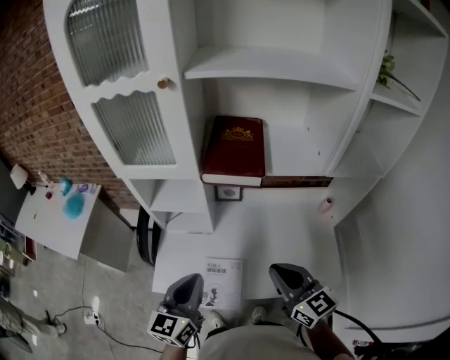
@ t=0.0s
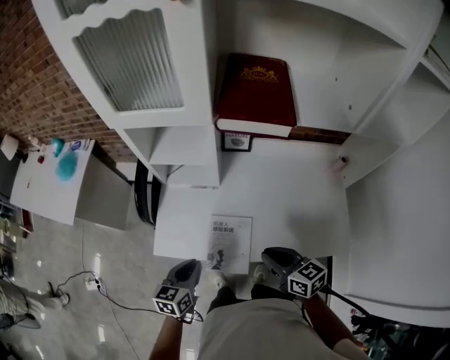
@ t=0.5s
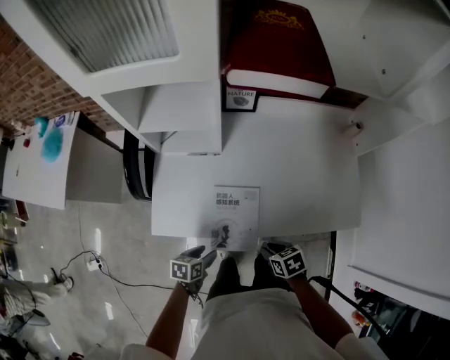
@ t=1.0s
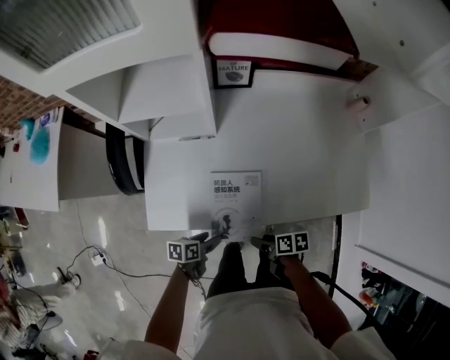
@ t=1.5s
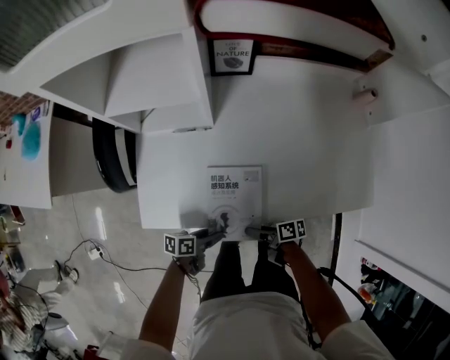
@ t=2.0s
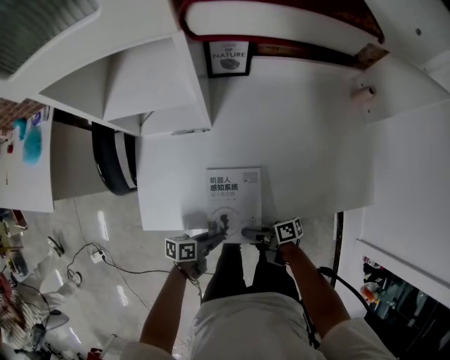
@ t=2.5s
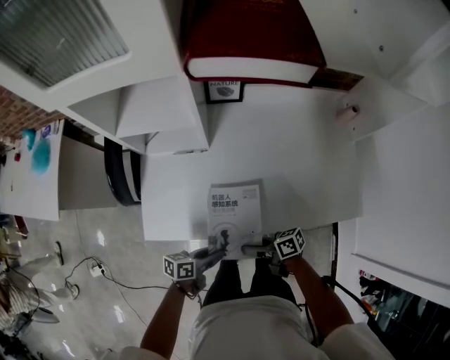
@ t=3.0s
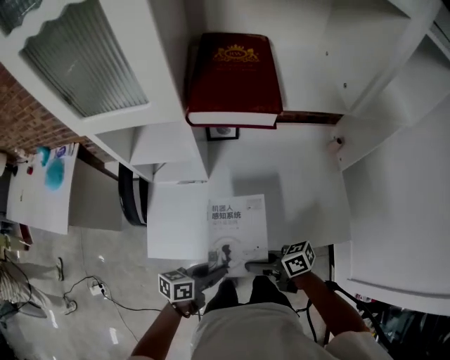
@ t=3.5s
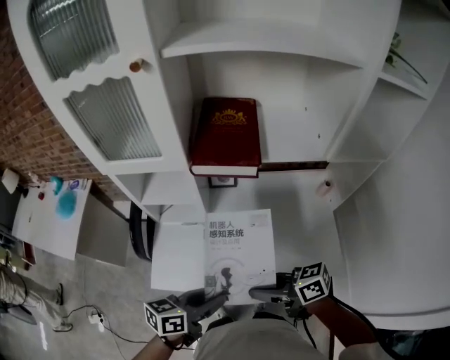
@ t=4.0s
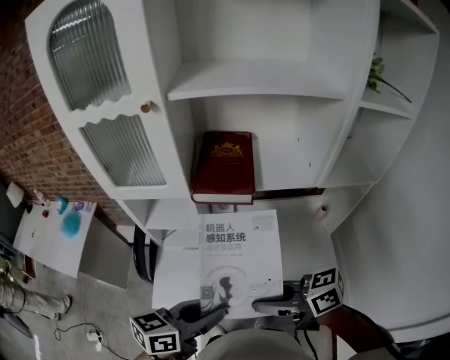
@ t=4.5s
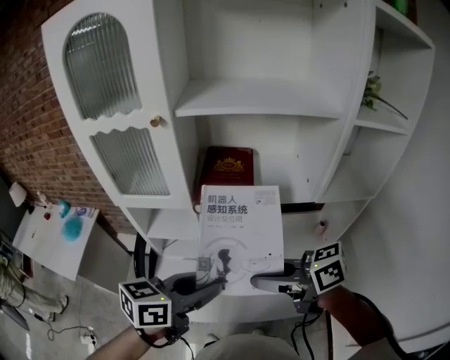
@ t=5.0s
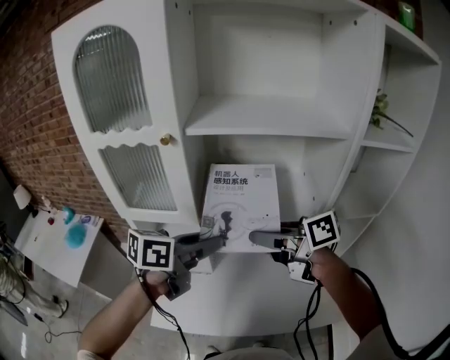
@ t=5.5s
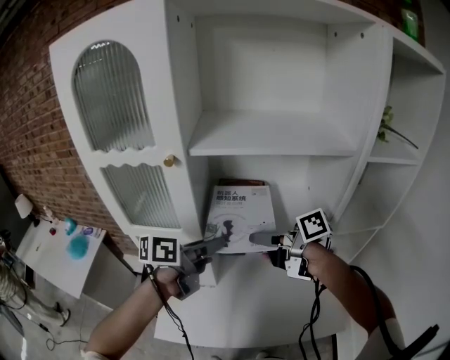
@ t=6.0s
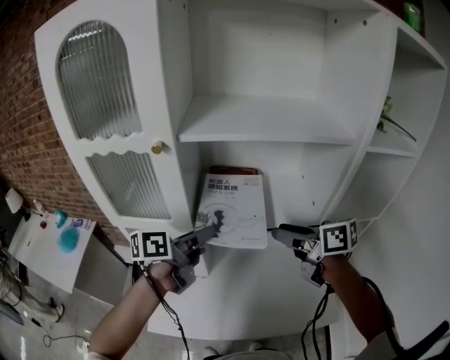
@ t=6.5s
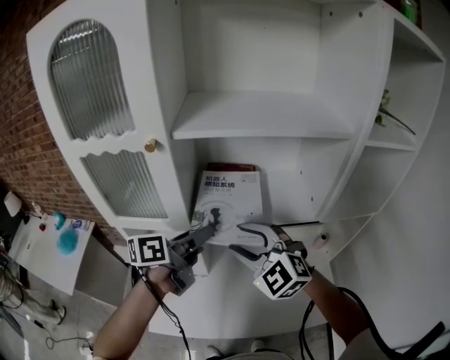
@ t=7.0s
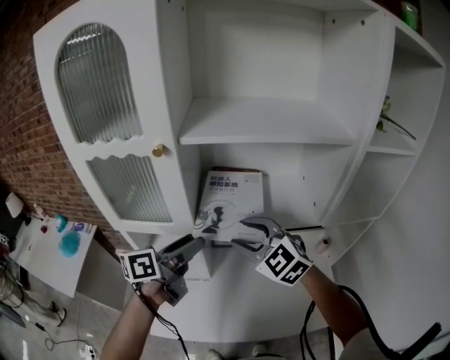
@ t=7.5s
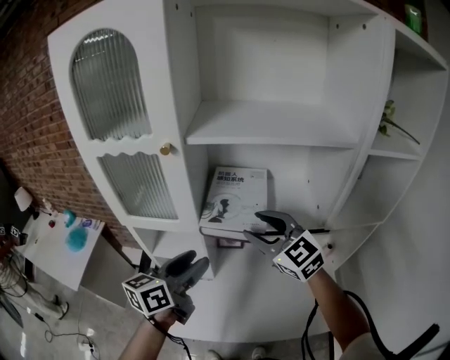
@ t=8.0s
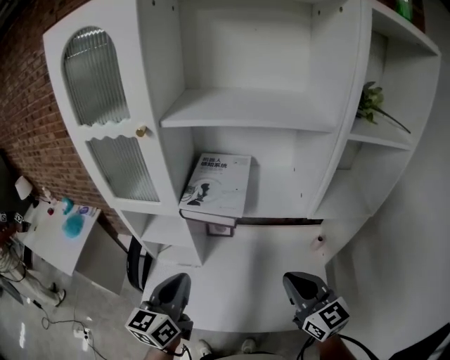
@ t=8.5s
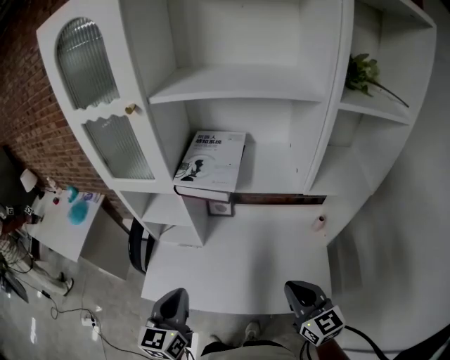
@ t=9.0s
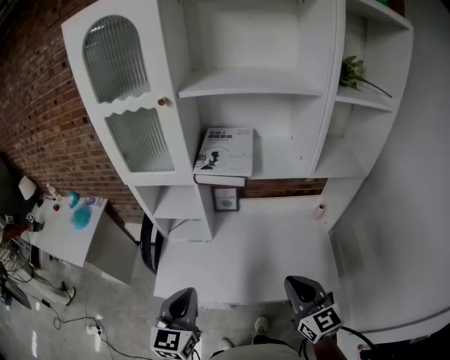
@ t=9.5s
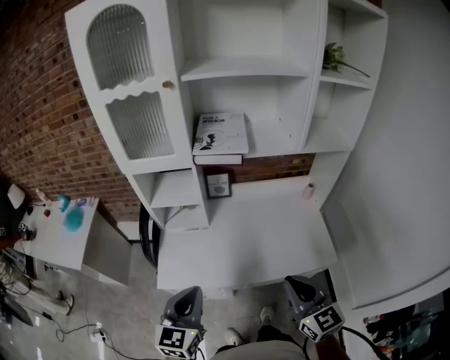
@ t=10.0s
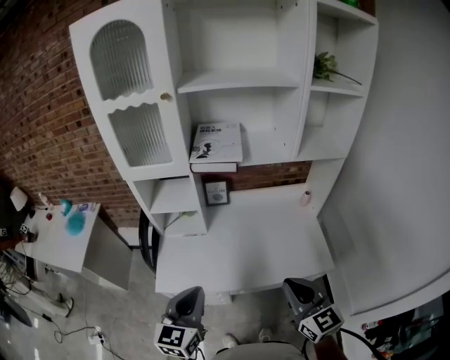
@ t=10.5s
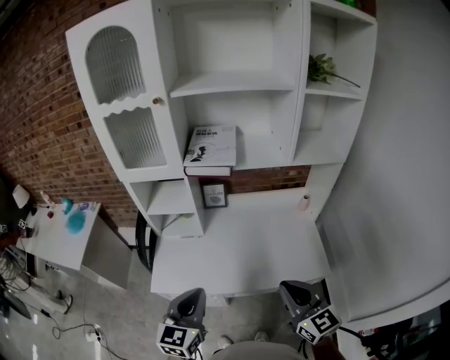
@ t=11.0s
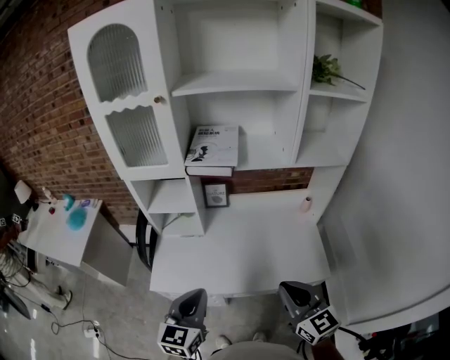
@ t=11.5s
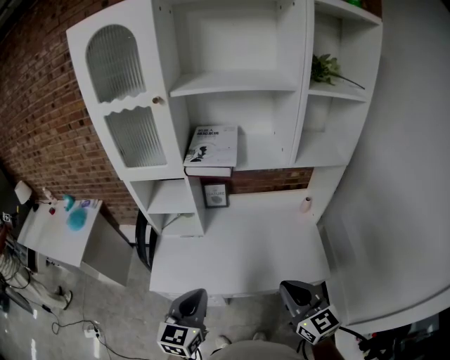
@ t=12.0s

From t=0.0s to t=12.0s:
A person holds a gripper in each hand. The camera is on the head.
From t=0.0s to t=2.0s: The two grippers go approximately 50 cm downward. The right gripper rolls clockwise, seen from behind, by roughly 80 degrees, and opens. Meanwhile the left gripper turns by about 80 degrees, and opens up.
From t=2.0s to t=4.0s: Both grippers travel together upward, about 40 cm. The right gripper rotates around the line of its fingers by some 50 degrees, counterclockwise from behind, and closes its fingers, while the left gripper swivels some 30 degrees.
From t=4.0s to t=6.0s: The left gripper moves approximately 35 cm. Meanwhile the right gripper changes place by approximately 35 cm.
From t=6.0s to t=8.0s: The right gripper goes to the right and returns, approximately 5 cm each way, and rotates around the line of its fingers by some 80 degrees, counterclockwise from behind. Meanwhile the left gripper moves backward, roughly 5 cm, and changes its angle by some 30 degrees.
From t=8.0s to t=10.0s: Both grippers move backward, about 35 cm. The left gripper changes its angle by about 30 degrees, and closes, while the right gripper swivels roughly 30 degrees, and closes.
From t=10.0s to t=12.0s: Both grippers move to the right, some 5 cm.

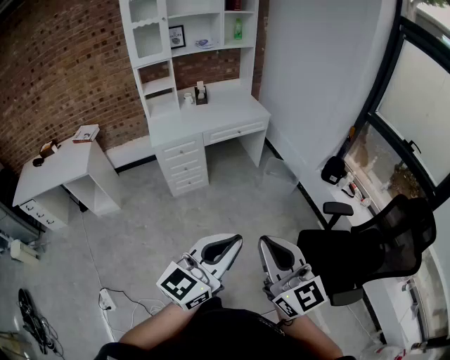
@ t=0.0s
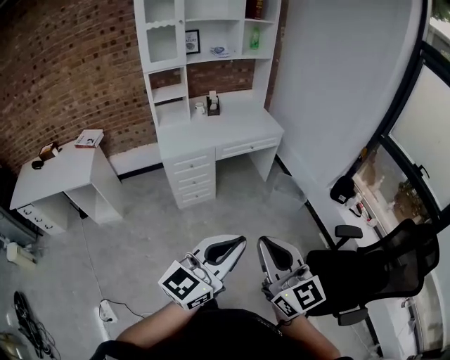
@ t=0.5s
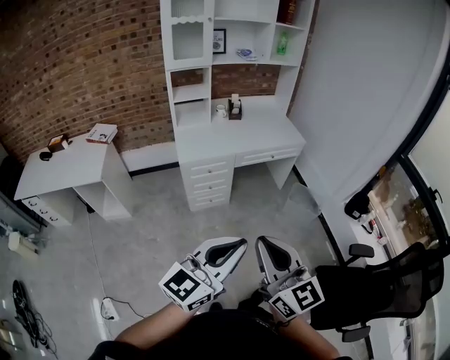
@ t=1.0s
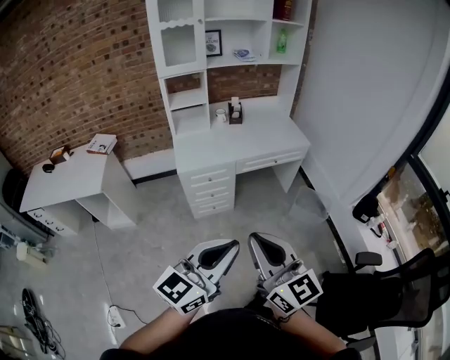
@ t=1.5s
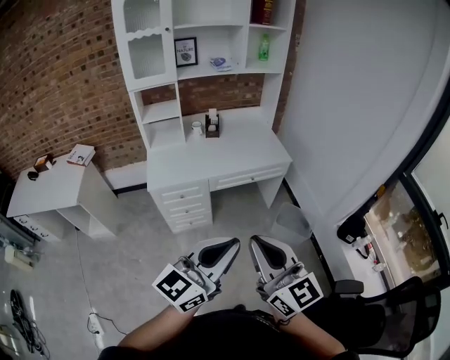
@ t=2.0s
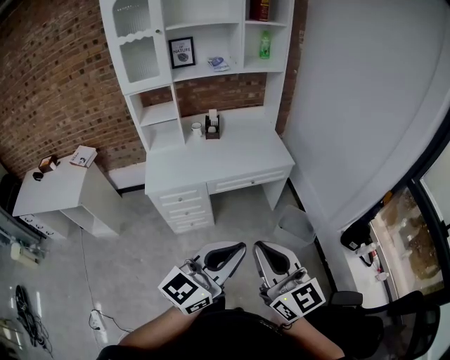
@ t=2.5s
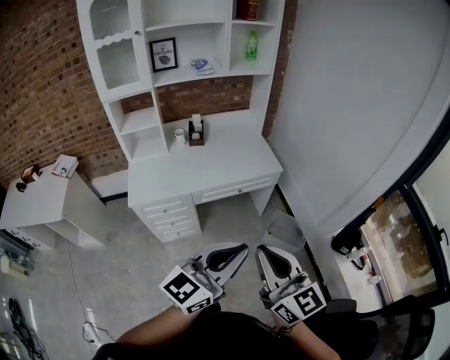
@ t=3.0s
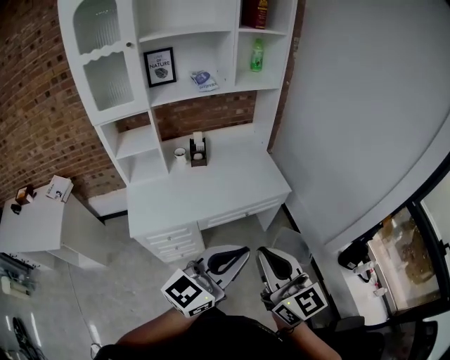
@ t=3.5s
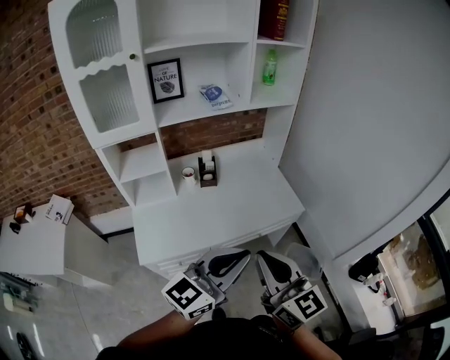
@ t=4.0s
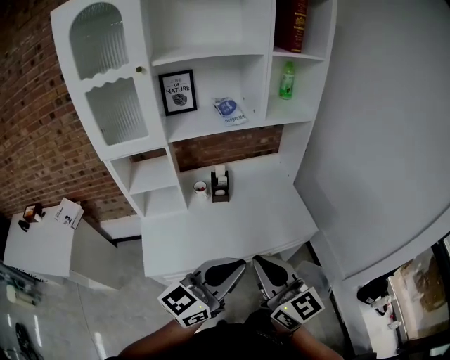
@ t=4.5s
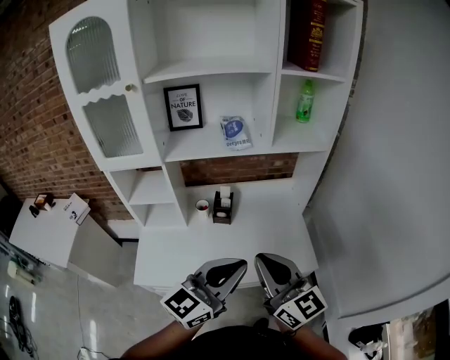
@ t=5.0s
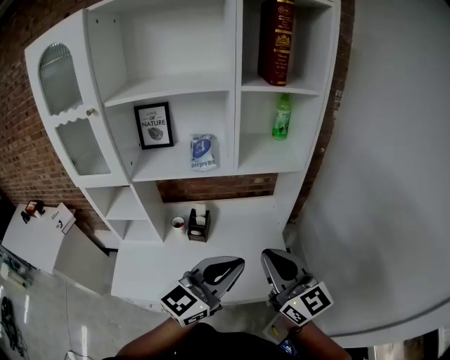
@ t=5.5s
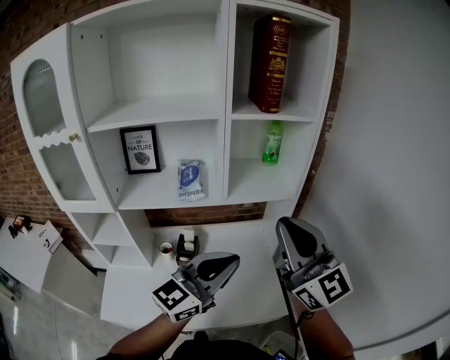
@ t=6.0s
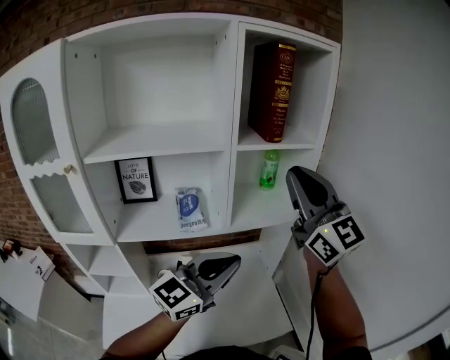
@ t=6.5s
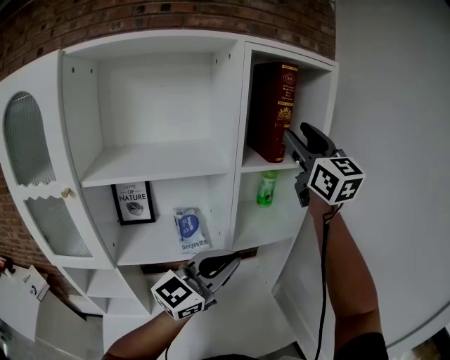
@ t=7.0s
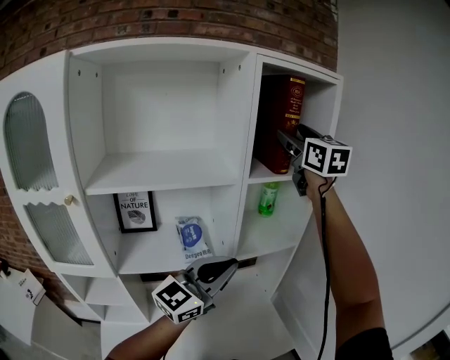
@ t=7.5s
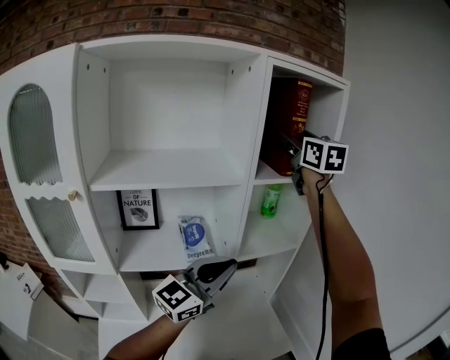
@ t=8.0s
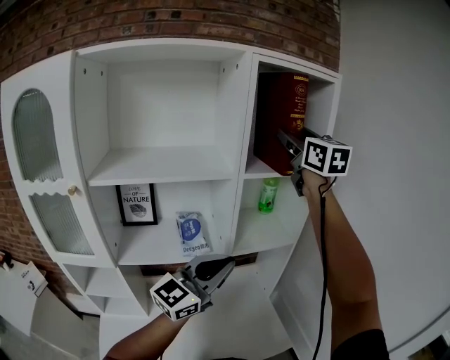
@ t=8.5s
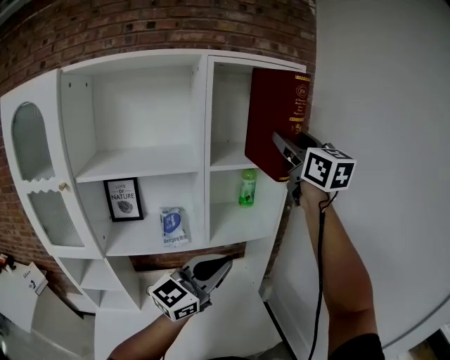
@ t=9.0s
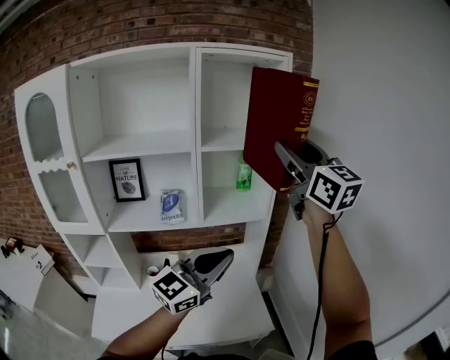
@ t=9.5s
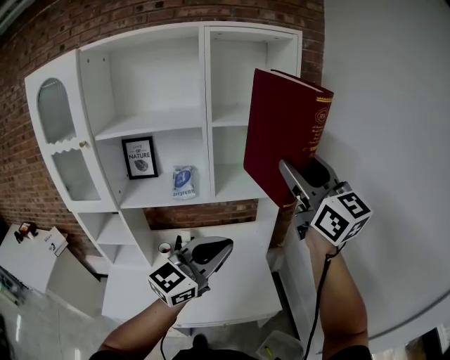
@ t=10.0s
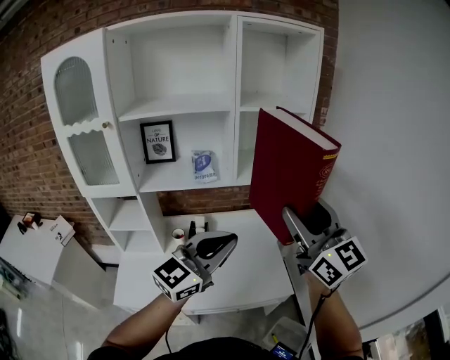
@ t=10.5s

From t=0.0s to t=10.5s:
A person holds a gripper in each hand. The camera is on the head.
From t=0.0s to t=2.0s: Both grippers travel together forward, roughly 40 cm.
From t=2.0s to t=4.0s: The two grippers go some 40 cm forward.
From t=4.0s to t=6.5s: The two grippers travel together, forward, about 50 cm. The right gripper goes approximately 30 cm upward, and swivels about 30 degrees.
From t=6.5s to t=8.5s: The right gripper goes about 20 cm forward and upward, and opens its fingers. The left gripper shifts by approximately 5 cm.
From t=8.5s to t=10.5s: The left gripper moves backward and to the right, some 20 cm, while the right gripper is displaced backward and downward by roughly 40 cm.

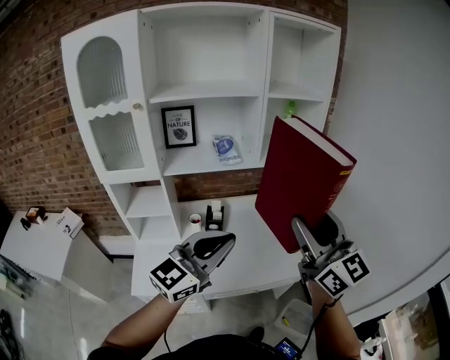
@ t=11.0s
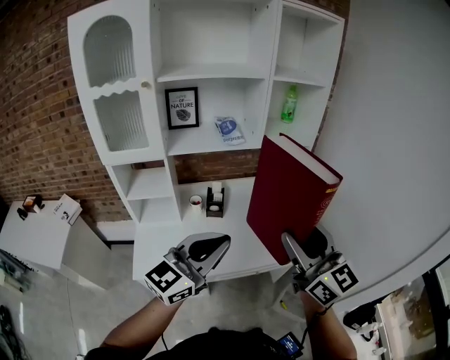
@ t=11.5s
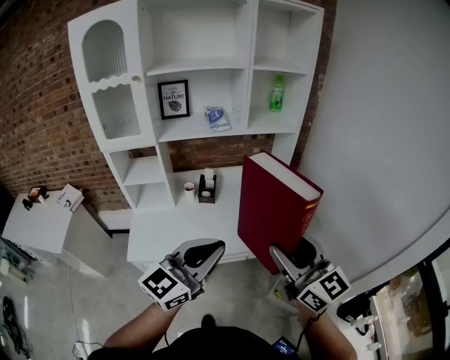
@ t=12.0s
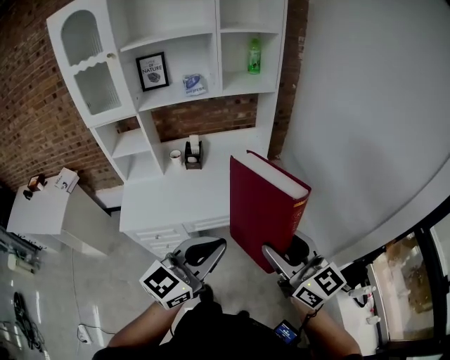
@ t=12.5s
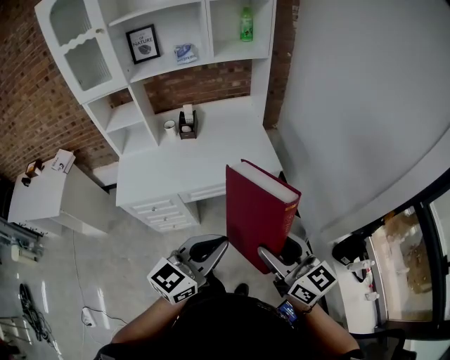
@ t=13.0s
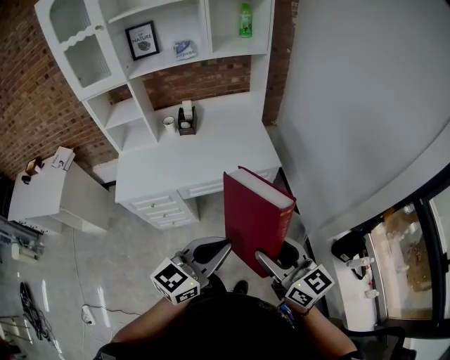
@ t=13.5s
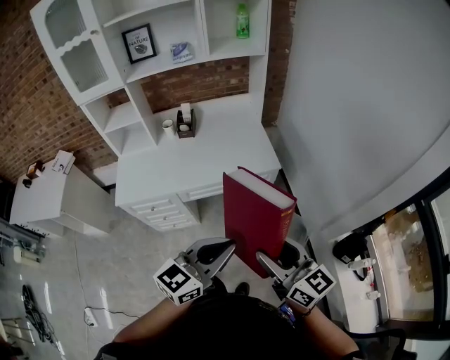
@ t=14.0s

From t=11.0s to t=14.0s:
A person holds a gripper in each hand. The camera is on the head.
From t=11.0s to t=12.5s: The left gripper shifts some 30 cm backward, to the right and downward, while the right gripper goes about 30 cm backward, downward and to the right.
From t=12.5s to t=14.0s: The left gripper shifts approximately 15 cm downward, to the right and backward. Meanwhile the right gripper goes approximately 15 cm downward and backward.

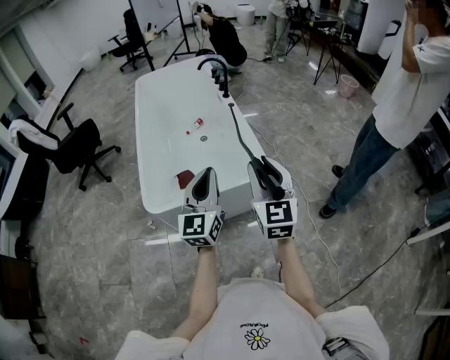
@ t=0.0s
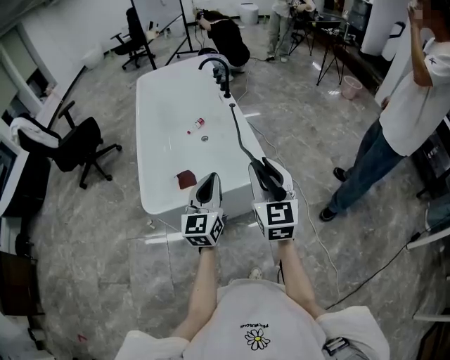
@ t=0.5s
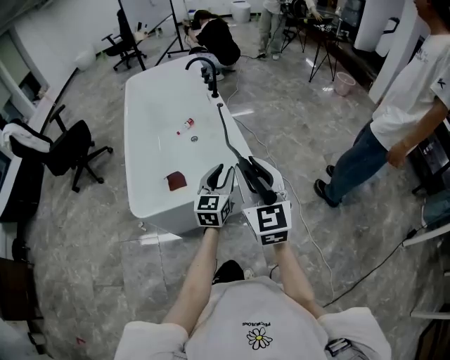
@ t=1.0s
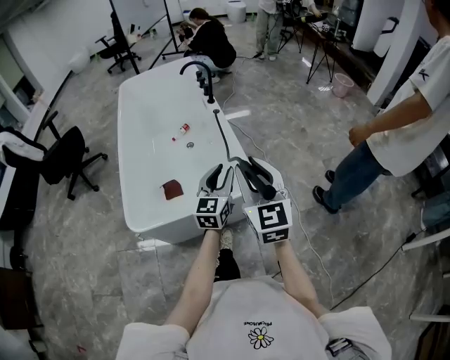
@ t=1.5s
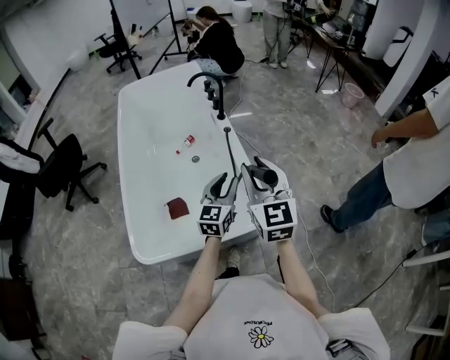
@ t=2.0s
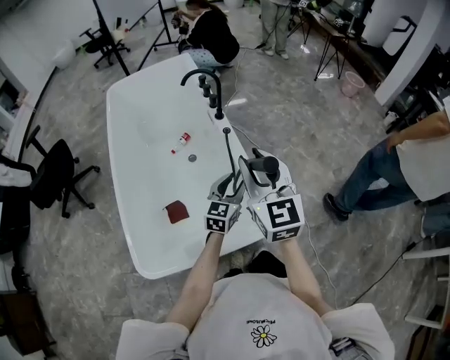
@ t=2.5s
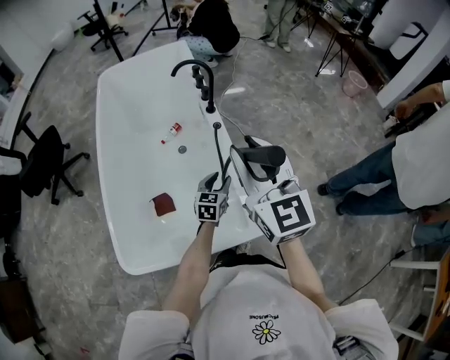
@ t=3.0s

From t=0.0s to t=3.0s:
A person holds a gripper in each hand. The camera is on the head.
From t=0.0s to t=1.5s: The left gripper goes about 20 cm forward, to the right and downward, and opens up. The right gripper shifts about 10 cm forward.
From t=1.5s to t=3.0s: The left gripper goes roughly 30 cm forward and downward, and turns by roughly 30 degrees. Meanwhile the right gripper goes roughly 30 cm forward.
